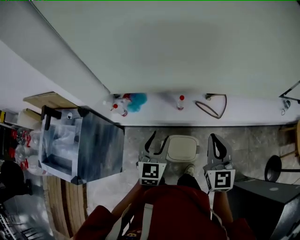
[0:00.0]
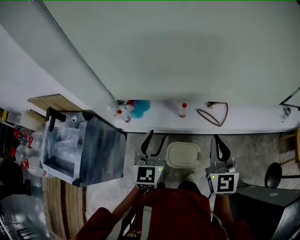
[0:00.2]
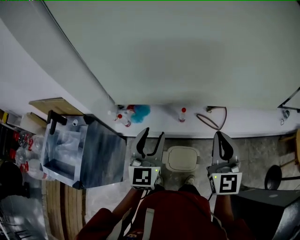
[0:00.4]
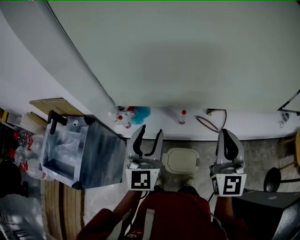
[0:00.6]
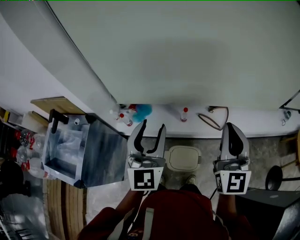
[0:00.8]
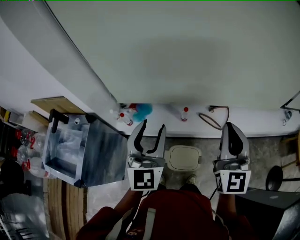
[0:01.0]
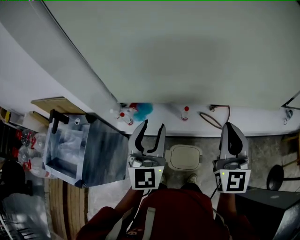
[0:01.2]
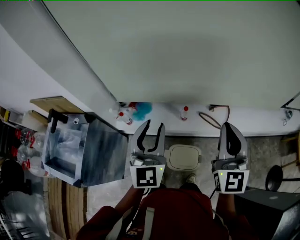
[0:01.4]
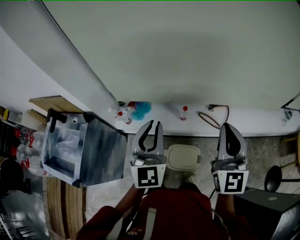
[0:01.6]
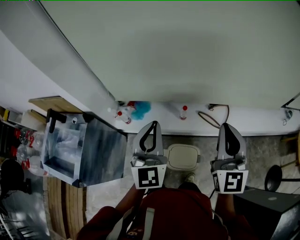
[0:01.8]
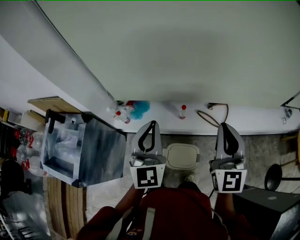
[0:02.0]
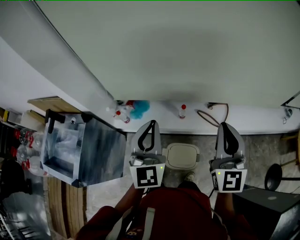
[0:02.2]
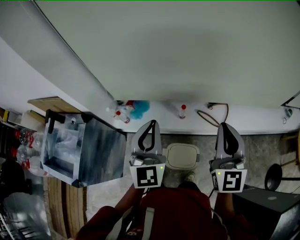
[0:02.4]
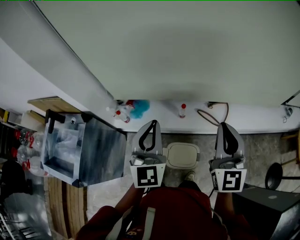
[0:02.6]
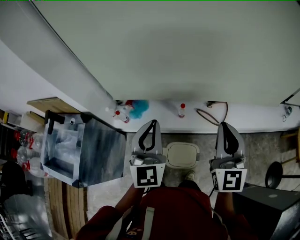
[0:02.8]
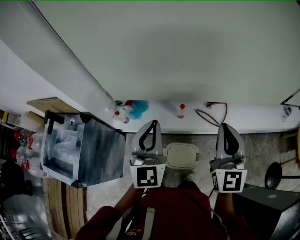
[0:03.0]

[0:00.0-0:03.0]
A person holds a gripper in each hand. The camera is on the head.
0:00.0 to 0:01.6: The grippers both shift upward by about 15 cm. The left gripper rotates roughly 20 degrees, and closes.
0:01.6 to 0:03.0: There are only small adjustments of the grippers.

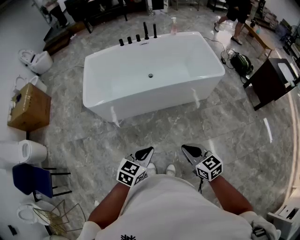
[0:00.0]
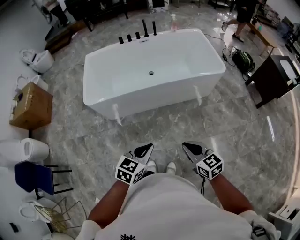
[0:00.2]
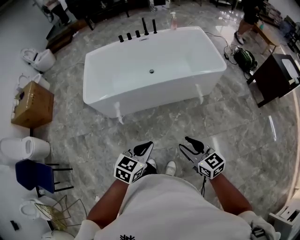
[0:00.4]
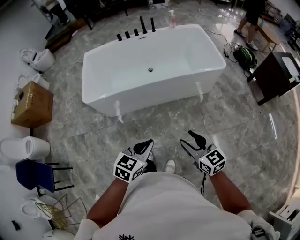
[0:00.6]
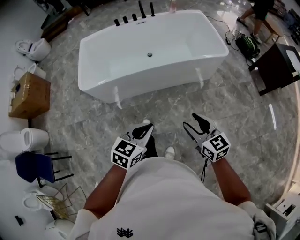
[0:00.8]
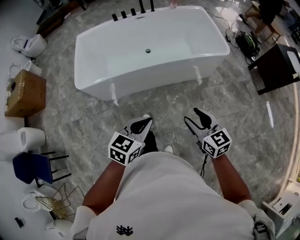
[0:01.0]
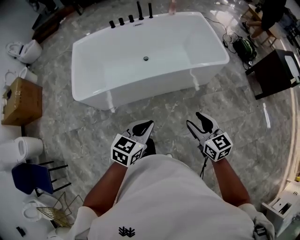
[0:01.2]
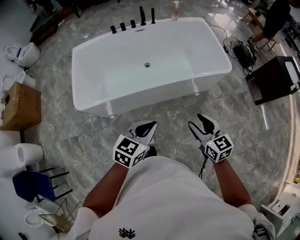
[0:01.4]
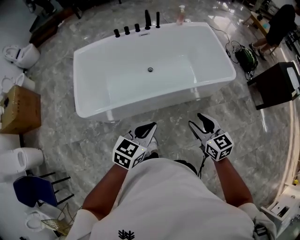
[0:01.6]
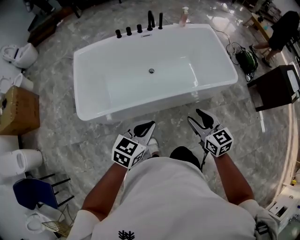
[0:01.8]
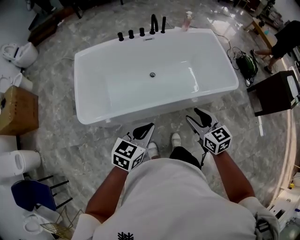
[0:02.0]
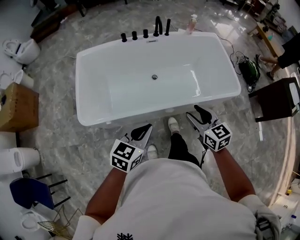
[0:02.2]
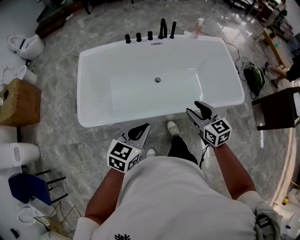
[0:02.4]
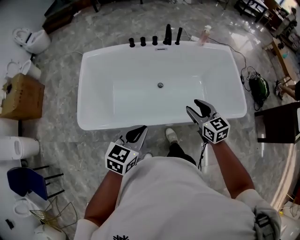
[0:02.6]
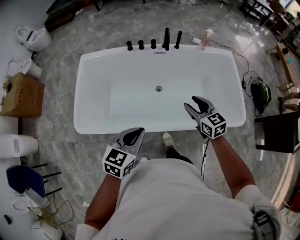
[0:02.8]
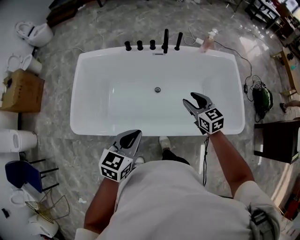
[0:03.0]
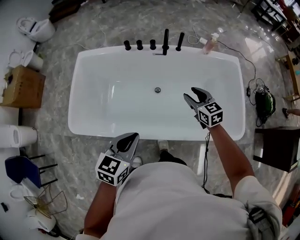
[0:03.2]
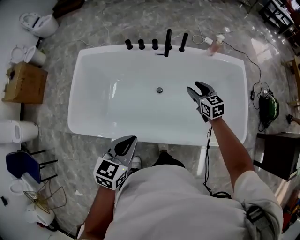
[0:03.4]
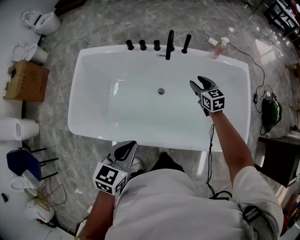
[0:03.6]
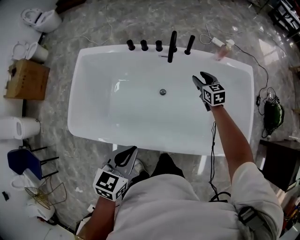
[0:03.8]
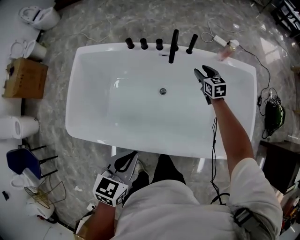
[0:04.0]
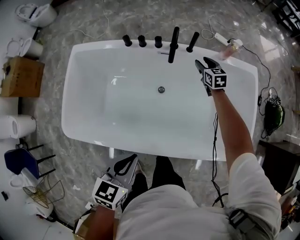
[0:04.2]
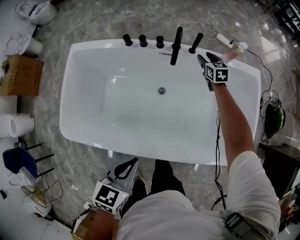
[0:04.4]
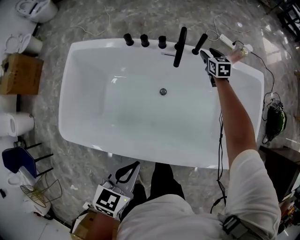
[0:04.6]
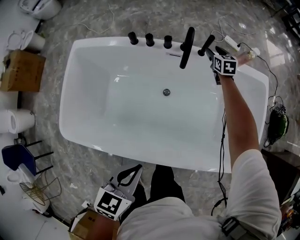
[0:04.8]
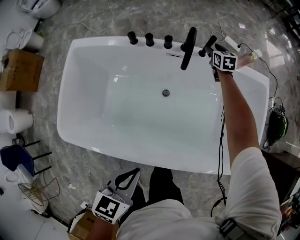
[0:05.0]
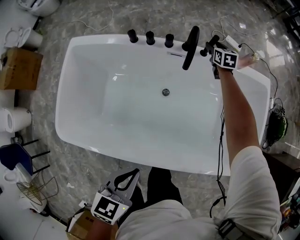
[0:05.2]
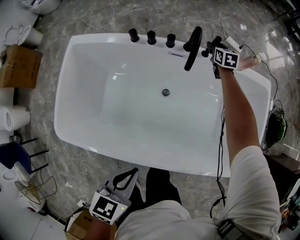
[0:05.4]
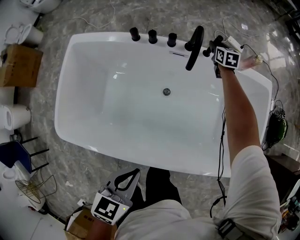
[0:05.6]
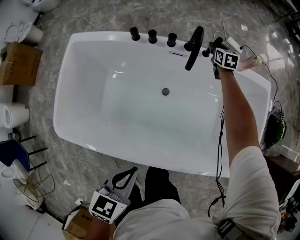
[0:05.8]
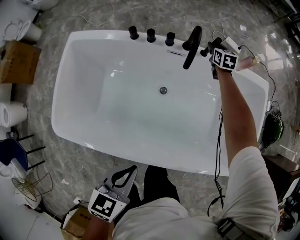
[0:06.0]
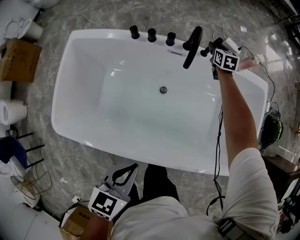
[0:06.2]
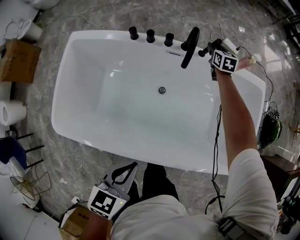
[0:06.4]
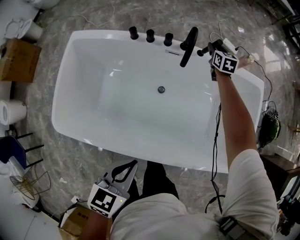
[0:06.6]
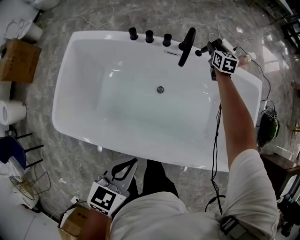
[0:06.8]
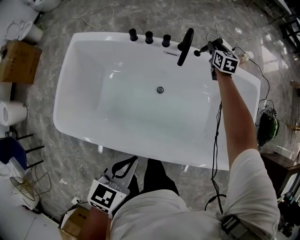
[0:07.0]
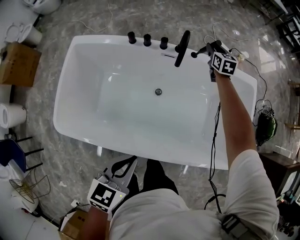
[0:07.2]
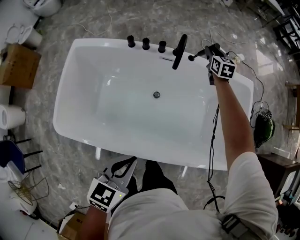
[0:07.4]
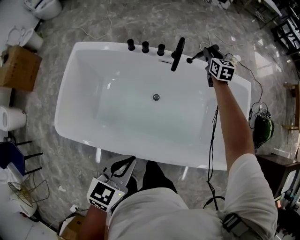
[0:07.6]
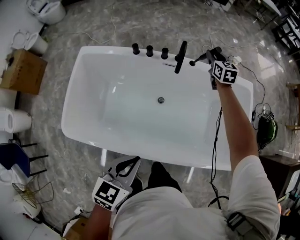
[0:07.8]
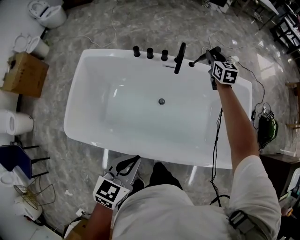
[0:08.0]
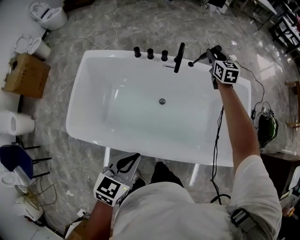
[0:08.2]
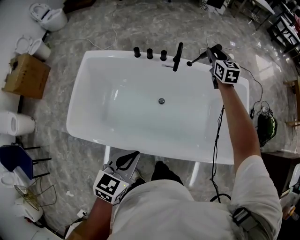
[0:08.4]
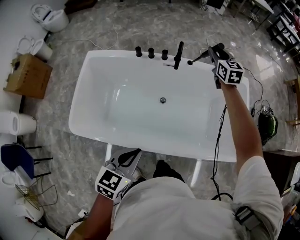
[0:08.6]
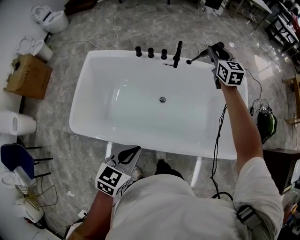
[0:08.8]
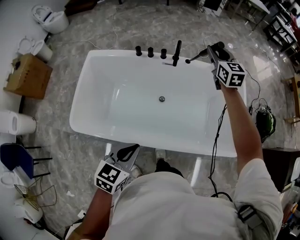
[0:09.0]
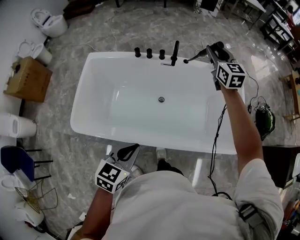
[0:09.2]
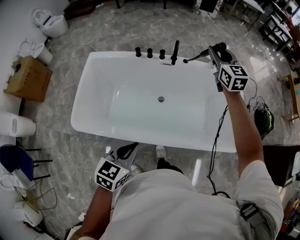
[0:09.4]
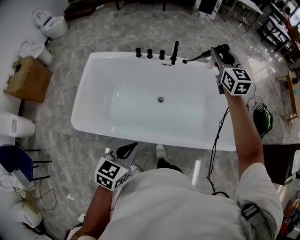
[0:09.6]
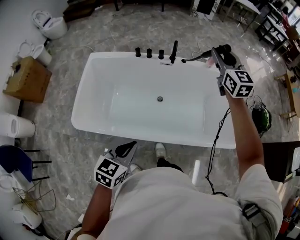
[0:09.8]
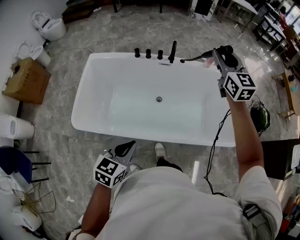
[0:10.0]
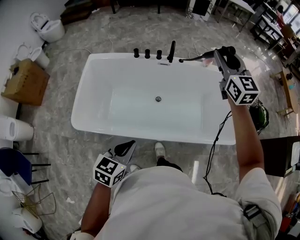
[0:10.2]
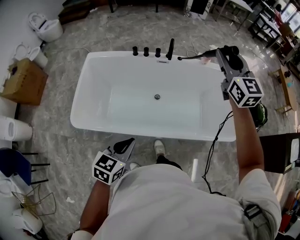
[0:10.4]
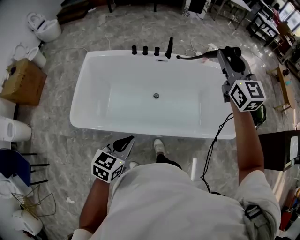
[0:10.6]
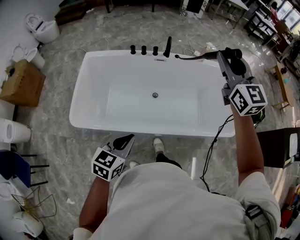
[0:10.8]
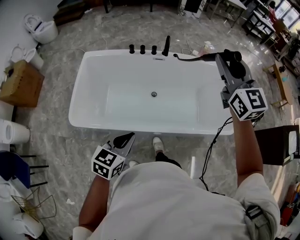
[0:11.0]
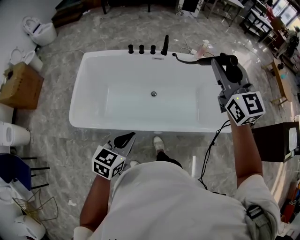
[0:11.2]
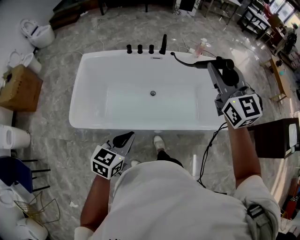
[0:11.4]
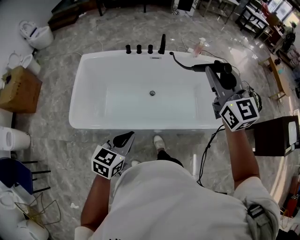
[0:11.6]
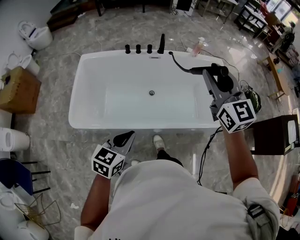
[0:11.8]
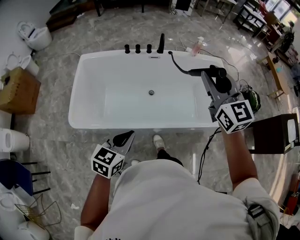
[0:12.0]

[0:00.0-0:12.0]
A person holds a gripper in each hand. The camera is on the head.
0:00.0 to 0:01.6: Both grippers travel together forward, approximately 30 cm. The right gripper opens its fingers.
0:01.6 to 0:03.0: The right gripper shifts approximately 50 cm forward, while the left gripper heads forward, covering approximately 30 cm, and rotates about 20 degrees.
0:03.0 to 0:04.4: The left gripper moves forward and downward, roughly 15 cm. Meanwhile the right gripper shifts some 50 cm forward and downward.
0:04.4 to 0:06.0: The right gripper heads forward, covering roughly 10 cm.
0:06.0 to 0:07.6: The left gripper goes some 5 cm upward. Meanwhile the right gripper moves upward and backward, approximately 20 cm.
0:07.6 to 0:09.0: The left gripper goes approximately 10 cm backward. The right gripper moves upward and backward, about 25 cm.
0:09.0 to 0:10.4: The right gripper shifts roughly 30 cm backward and upward. The left gripper travels backward by about 10 cm.
0:10.4 to 0:12.0: The right gripper is displaced backward by approximately 15 cm.

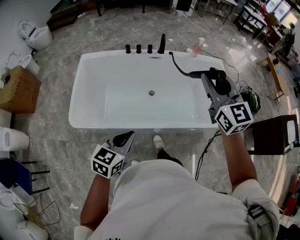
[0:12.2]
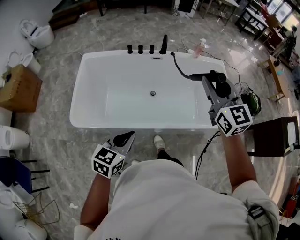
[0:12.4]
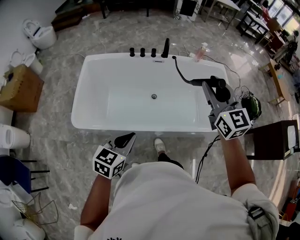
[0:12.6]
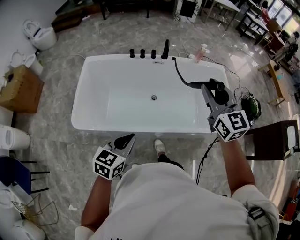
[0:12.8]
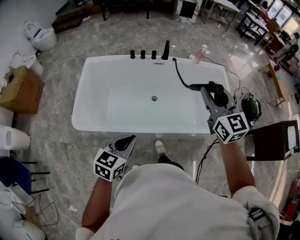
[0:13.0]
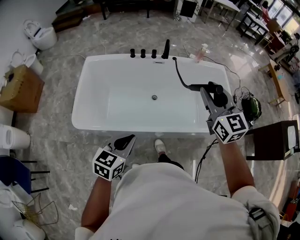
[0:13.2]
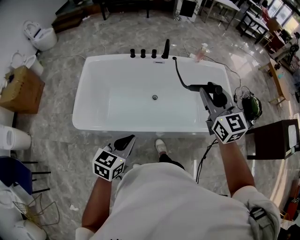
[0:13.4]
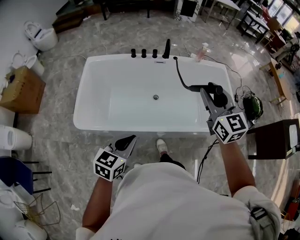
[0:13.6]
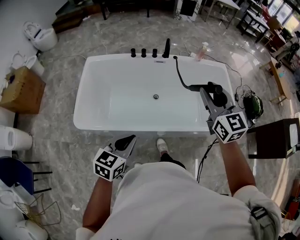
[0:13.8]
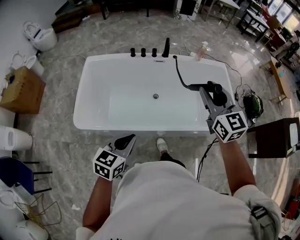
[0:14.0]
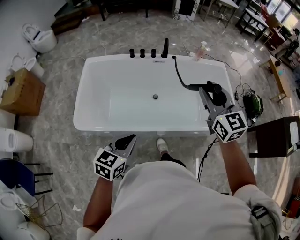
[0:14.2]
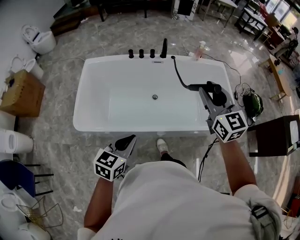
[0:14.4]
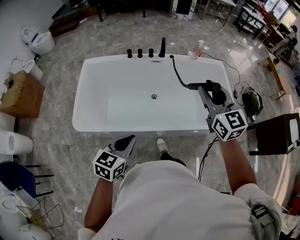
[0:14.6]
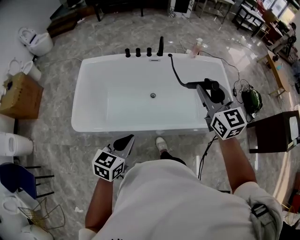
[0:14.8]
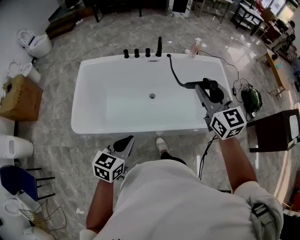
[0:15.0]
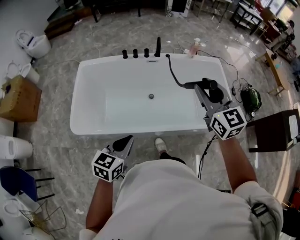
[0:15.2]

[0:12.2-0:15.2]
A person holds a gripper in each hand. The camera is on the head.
0:12.2 to 0:15.2: There are only small adjustments of the grippers.

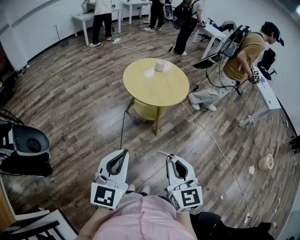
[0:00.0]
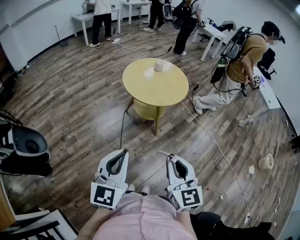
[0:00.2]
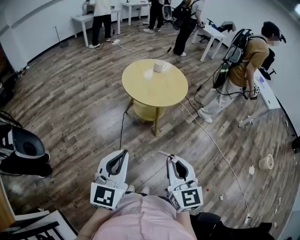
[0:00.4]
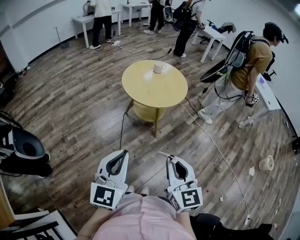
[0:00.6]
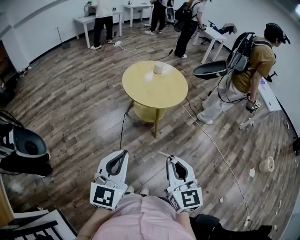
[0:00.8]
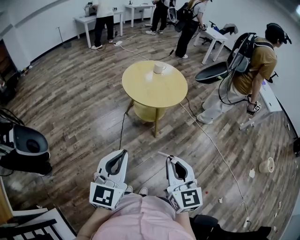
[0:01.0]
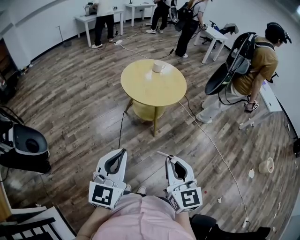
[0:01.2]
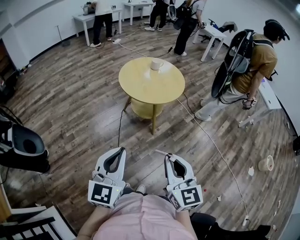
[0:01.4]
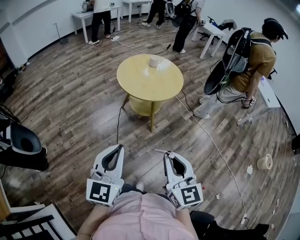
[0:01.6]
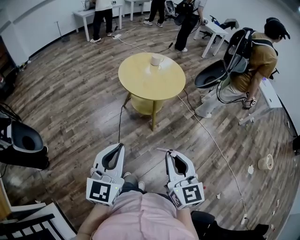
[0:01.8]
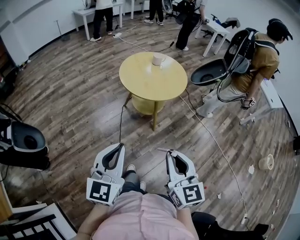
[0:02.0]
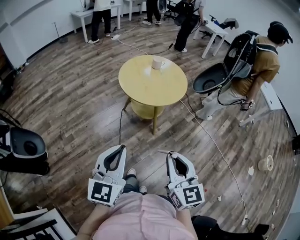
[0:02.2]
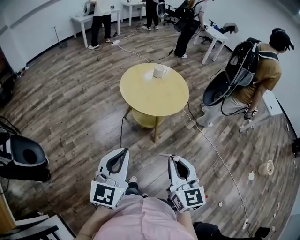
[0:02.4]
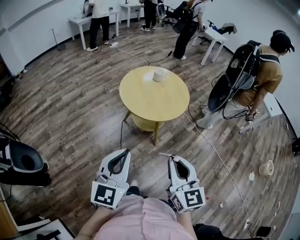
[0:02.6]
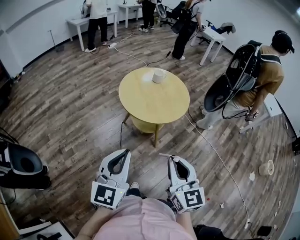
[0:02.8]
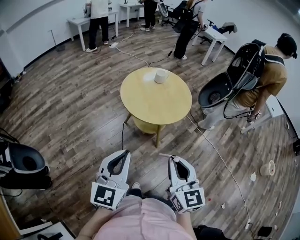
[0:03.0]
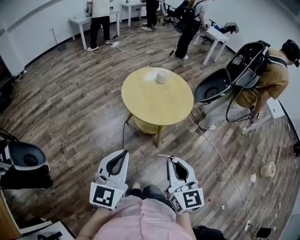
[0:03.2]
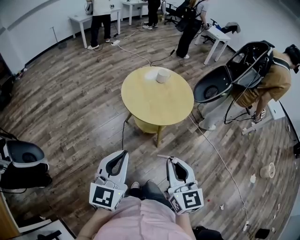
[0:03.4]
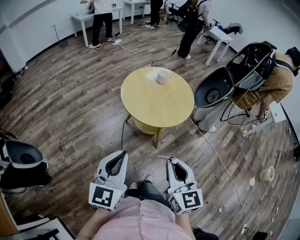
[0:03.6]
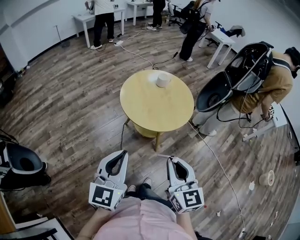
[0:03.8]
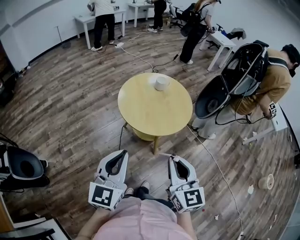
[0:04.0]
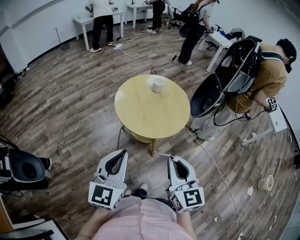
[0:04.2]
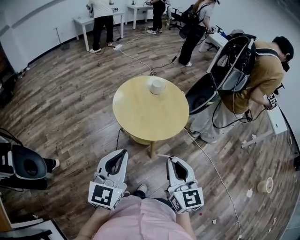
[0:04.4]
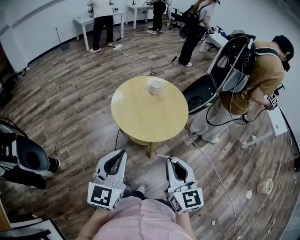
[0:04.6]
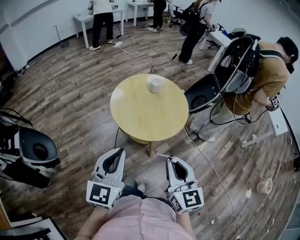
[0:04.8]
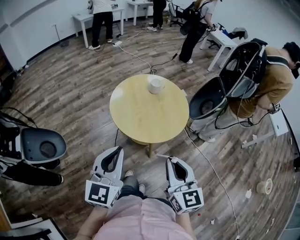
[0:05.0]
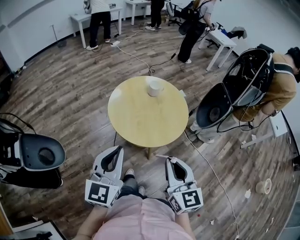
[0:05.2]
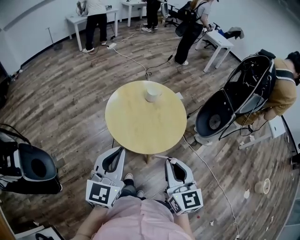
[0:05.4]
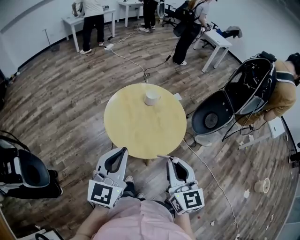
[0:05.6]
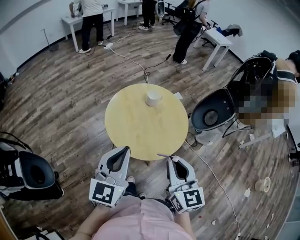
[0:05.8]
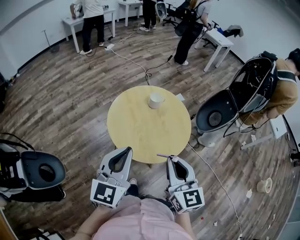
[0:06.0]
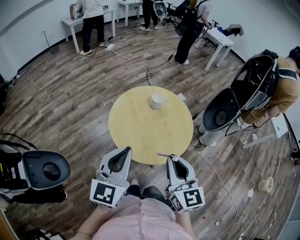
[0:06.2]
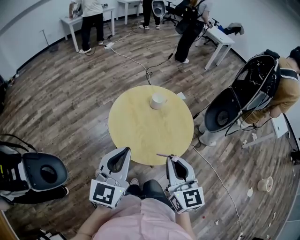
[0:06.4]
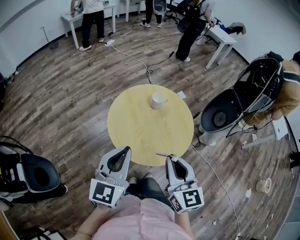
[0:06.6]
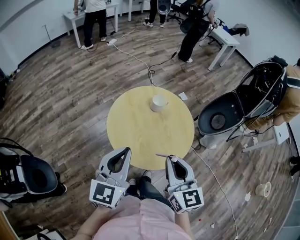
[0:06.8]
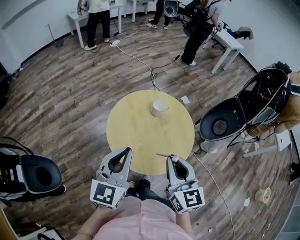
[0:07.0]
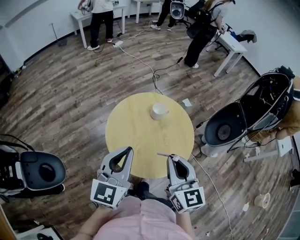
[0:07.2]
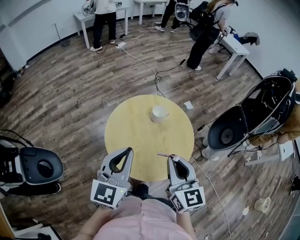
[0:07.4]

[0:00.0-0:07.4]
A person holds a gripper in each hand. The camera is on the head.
0:00.0 to 0:01.4: The right gripper goes roughly 5 cm to the right.
0:01.4 to 0:03.0: Both grippers travel together forward, some 15 cm.
0:03.0 to 0:04.4: Both grippers travel together forward and to the right, some 15 cm.
0:04.4 to 0:06.0: The grippers both shift forward by approximately 20 cm.
0:06.0 to 0:07.4: Both grippers move forward, some 10 cm.
